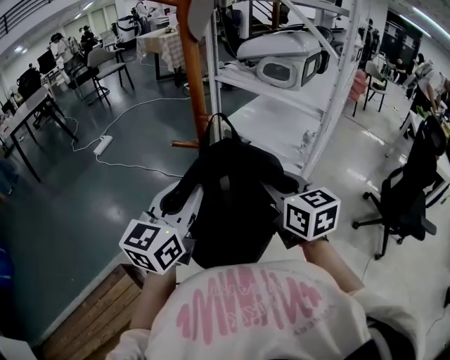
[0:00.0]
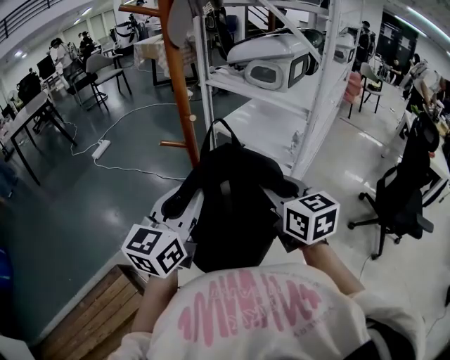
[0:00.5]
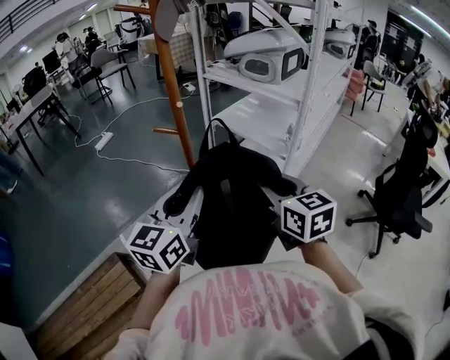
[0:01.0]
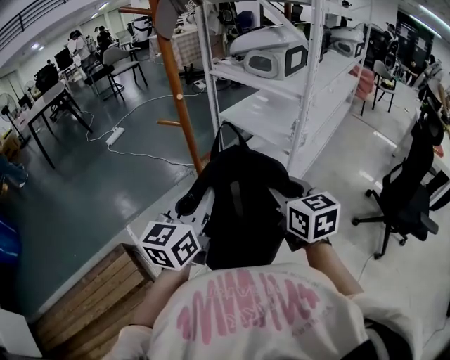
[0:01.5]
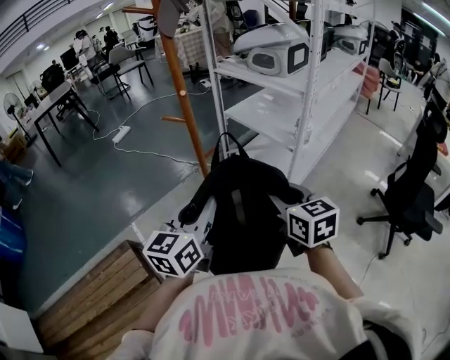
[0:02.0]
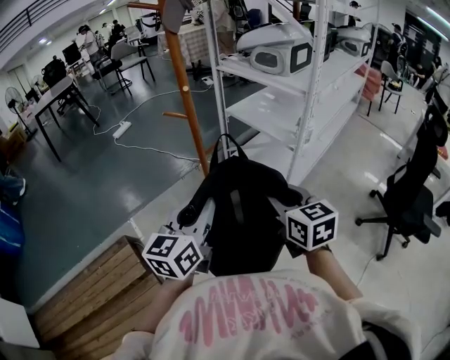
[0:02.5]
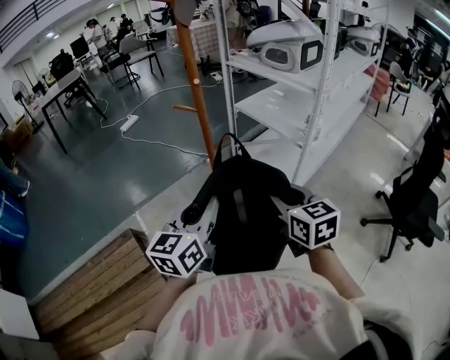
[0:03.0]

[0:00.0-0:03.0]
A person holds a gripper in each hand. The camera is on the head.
0:00.0 to 0:01.5: The grippers both shift to the right and backward by about 15 cm.
0:01.5 to 0:03.0: The left gripper shifts by some 5 cm. Meanwhile the right gripper moves roughly 5 cm.

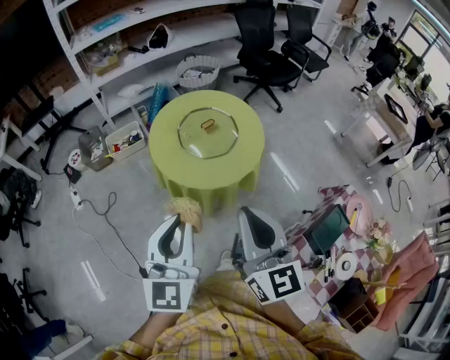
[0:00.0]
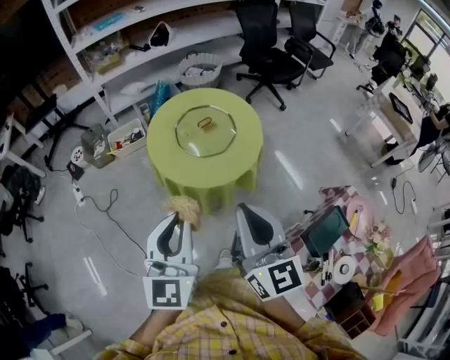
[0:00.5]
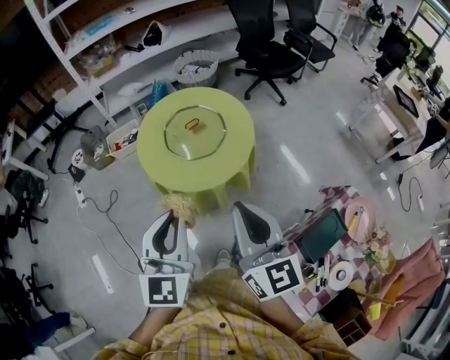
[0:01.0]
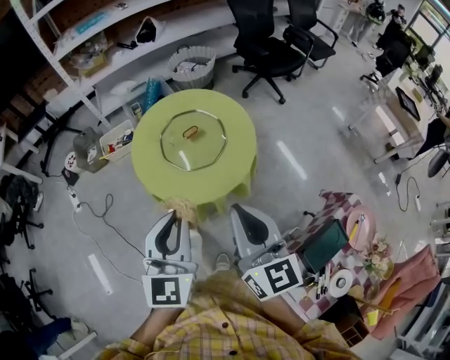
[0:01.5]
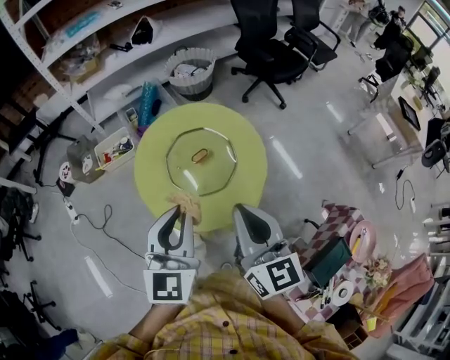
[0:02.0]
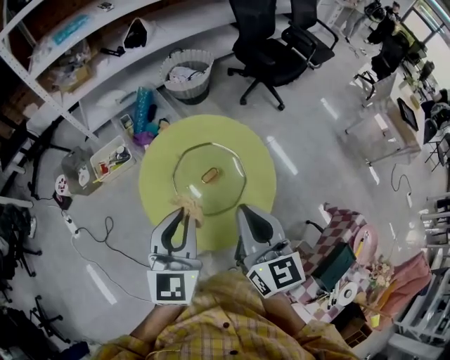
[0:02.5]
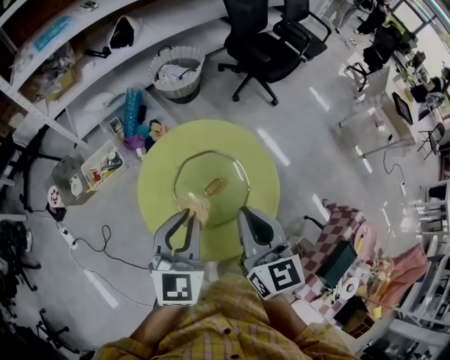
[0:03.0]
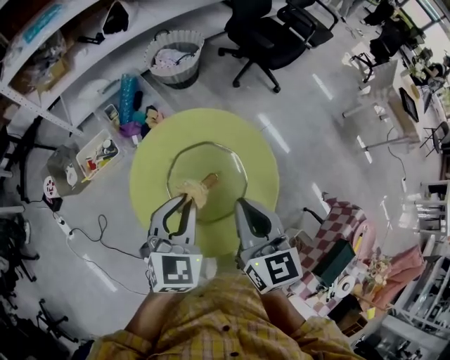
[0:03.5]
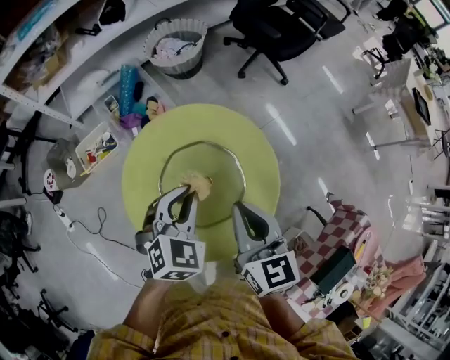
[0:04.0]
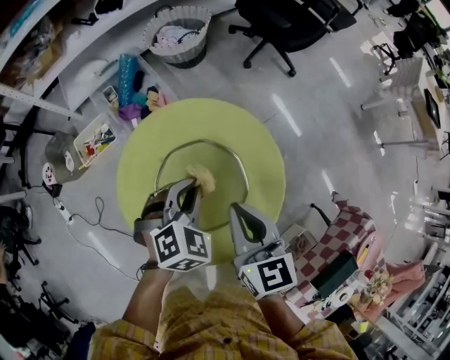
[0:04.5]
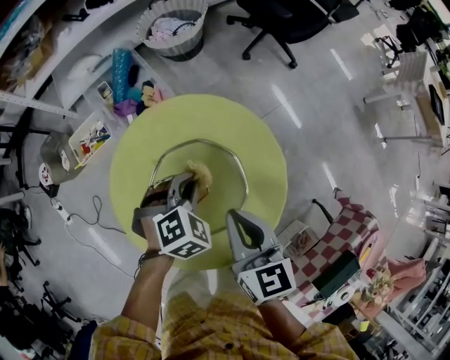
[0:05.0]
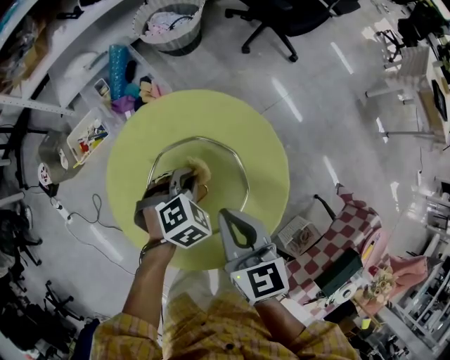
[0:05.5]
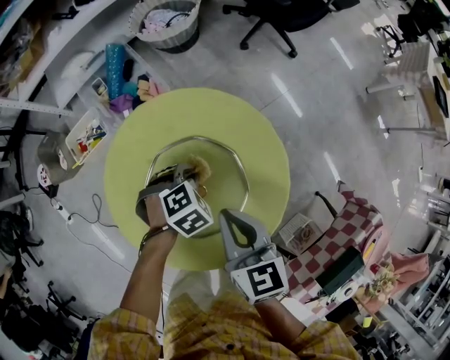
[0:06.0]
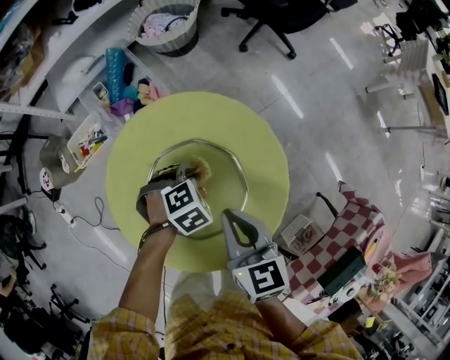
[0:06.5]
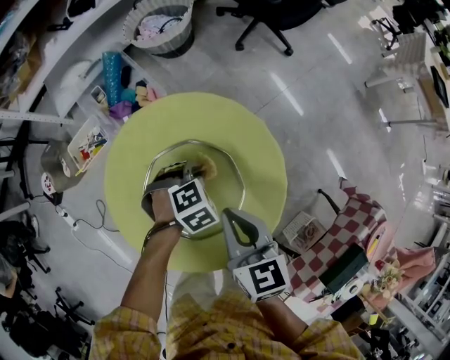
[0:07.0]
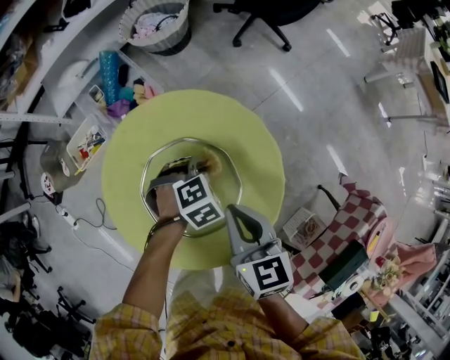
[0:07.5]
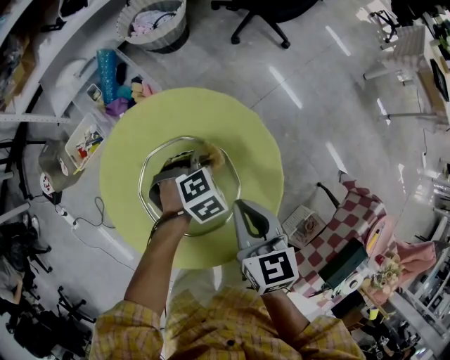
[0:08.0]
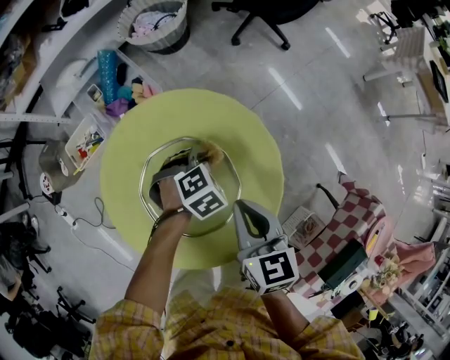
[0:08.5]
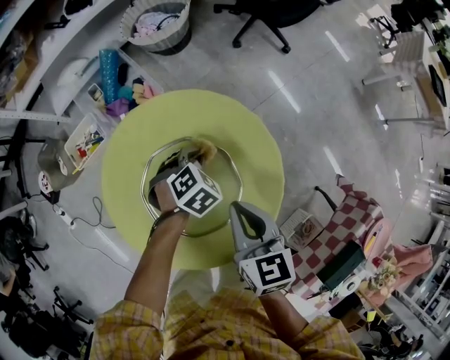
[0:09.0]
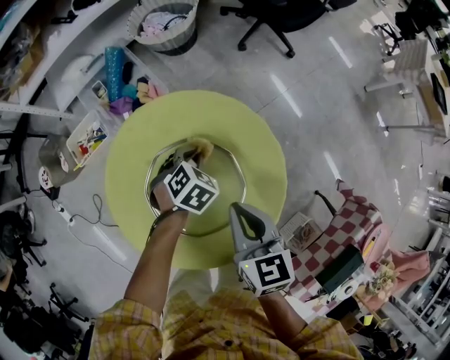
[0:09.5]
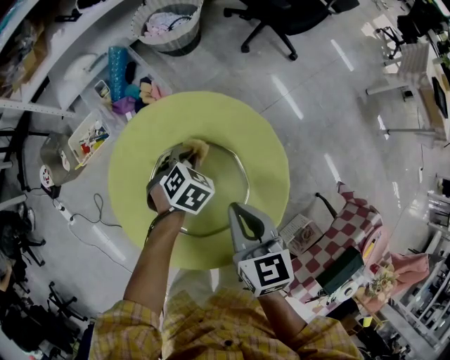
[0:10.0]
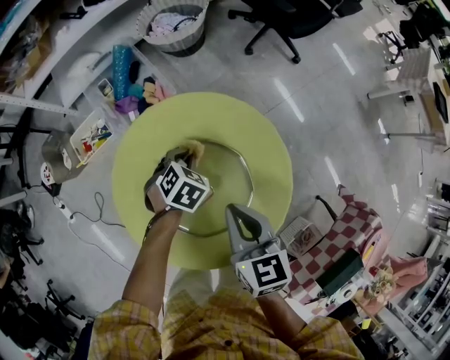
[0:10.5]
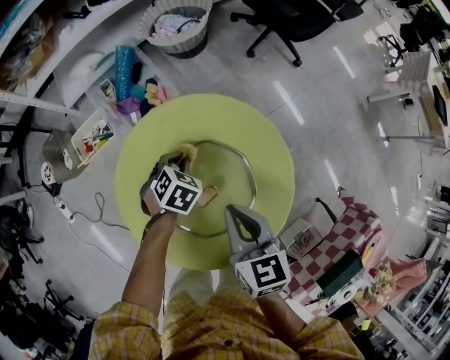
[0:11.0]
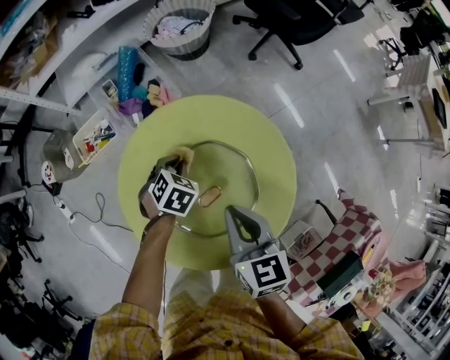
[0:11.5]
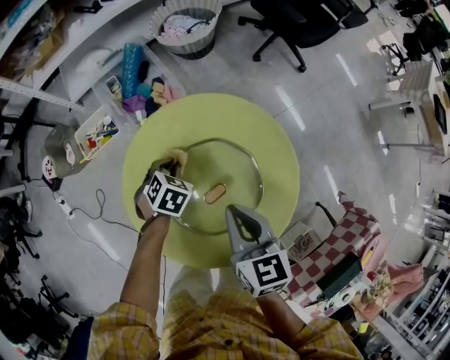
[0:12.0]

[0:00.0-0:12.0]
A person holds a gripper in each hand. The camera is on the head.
0:00.0 to 0:02.0: Both grippers move forward, some 30 cm.
0:02.0 to 0:04.0: Both grippers travel together forward and downward, roughly 30 cm. The left gripper points its fingers approximately 30 degrees further downward.
0:04.0 to 0:06.0: The left gripper moves downward, some 25 cm, and tips its fingers downward by some 30 degrees; the right gripper travels downward by about 15 cm.
0:06.0 to 0:08.0: The left gripper shifts by roughly 5 cm. Meanwhile the right gripper changes place by roughly 5 cm.
0:08.0 to 0:10.0: The left gripper moves to the left, roughly 10 cm, and rotates approximately 30 degrees.
0:10.0 to 0:12.0: The right gripper heads to the left, covering roughly 5 cm. The left gripper moves to the left, some 10 cm.

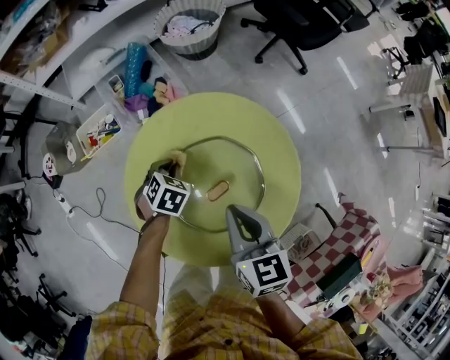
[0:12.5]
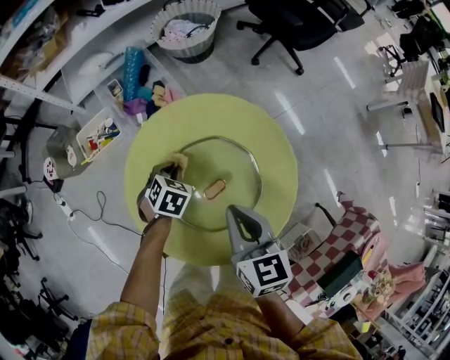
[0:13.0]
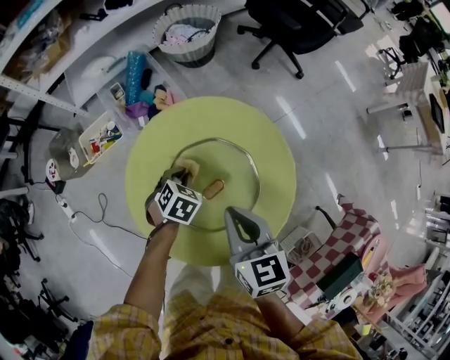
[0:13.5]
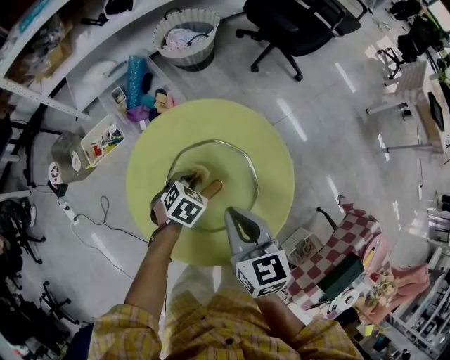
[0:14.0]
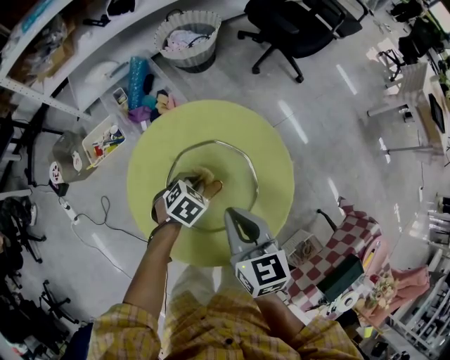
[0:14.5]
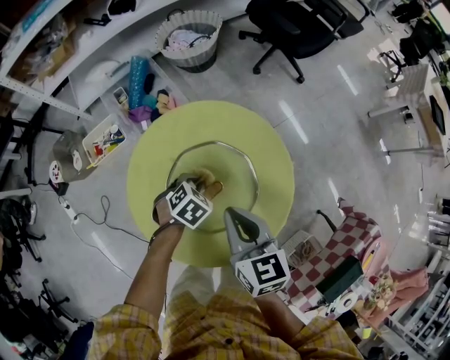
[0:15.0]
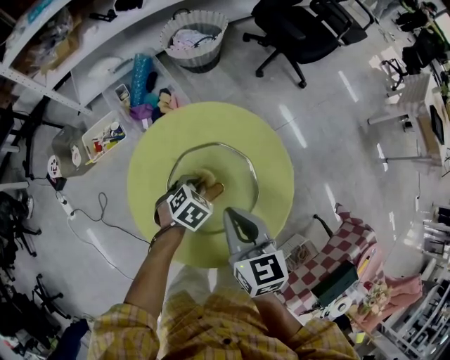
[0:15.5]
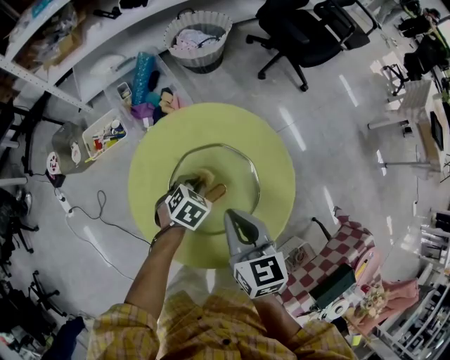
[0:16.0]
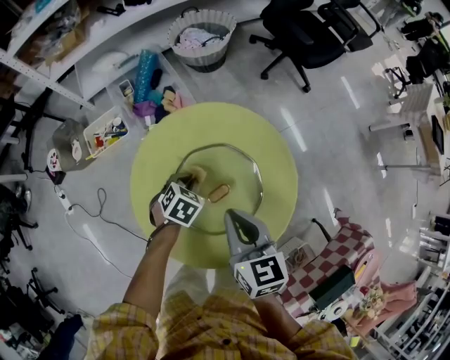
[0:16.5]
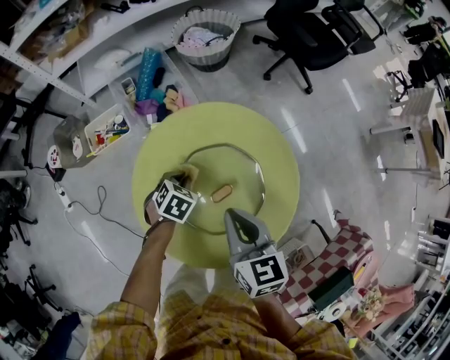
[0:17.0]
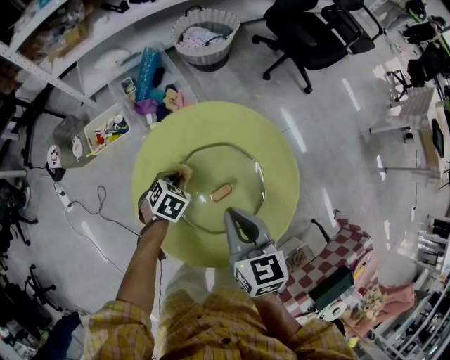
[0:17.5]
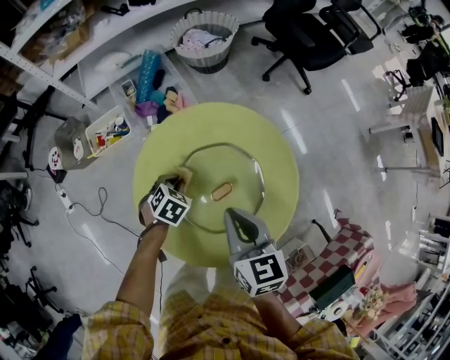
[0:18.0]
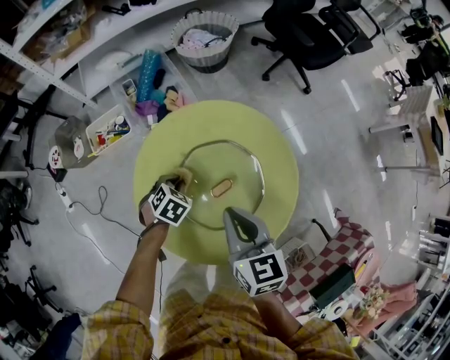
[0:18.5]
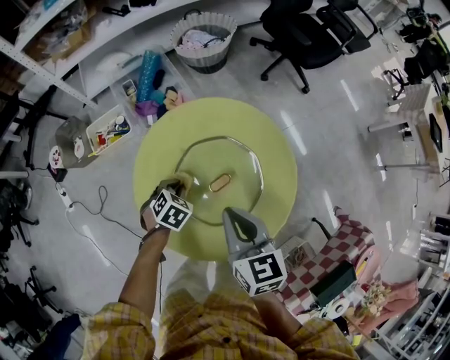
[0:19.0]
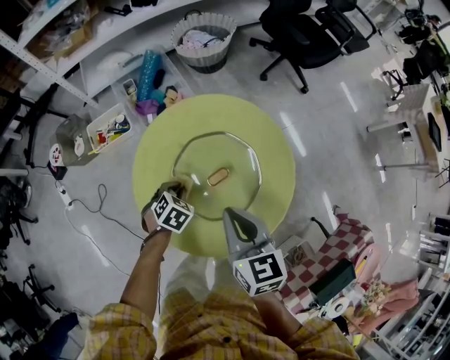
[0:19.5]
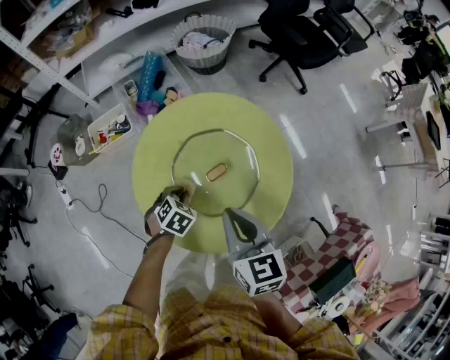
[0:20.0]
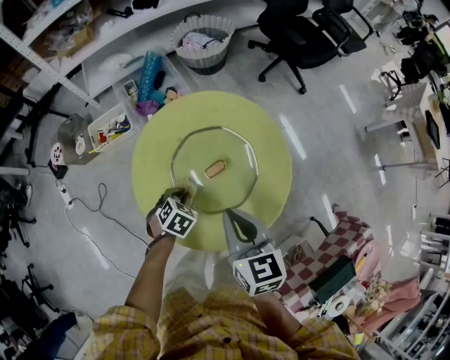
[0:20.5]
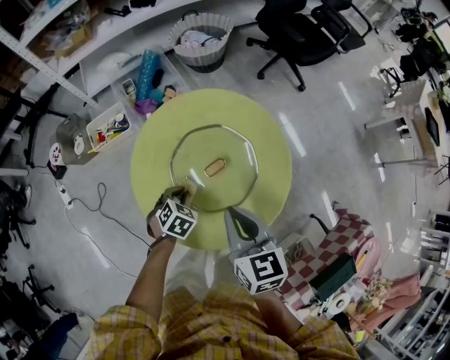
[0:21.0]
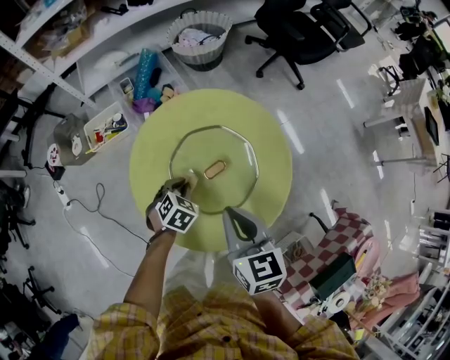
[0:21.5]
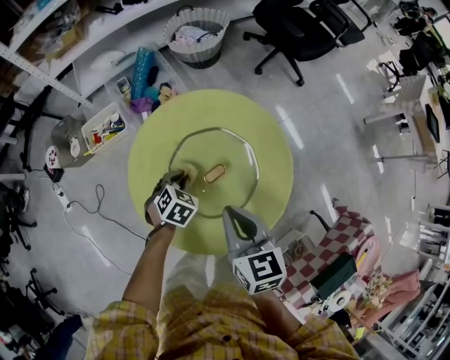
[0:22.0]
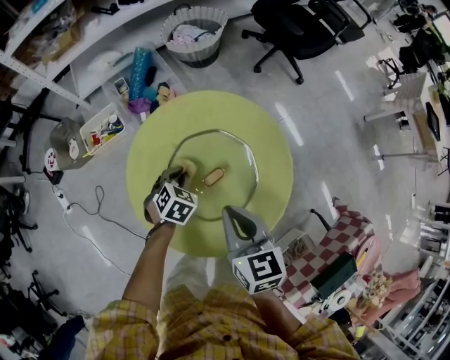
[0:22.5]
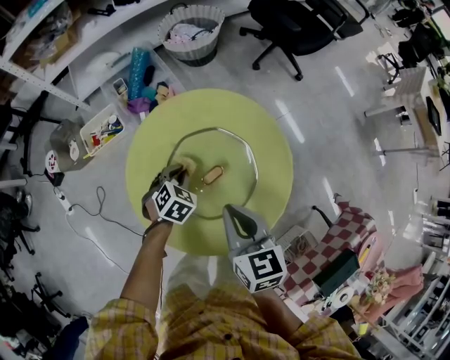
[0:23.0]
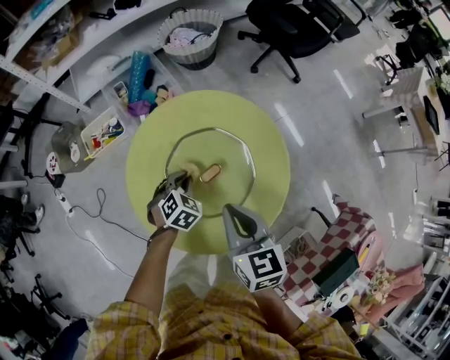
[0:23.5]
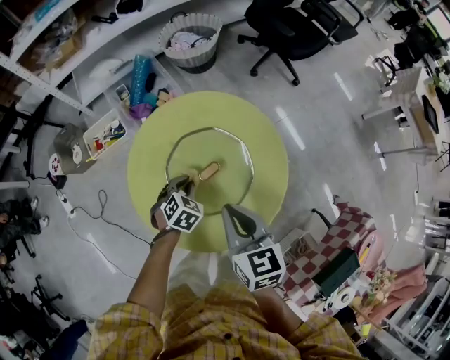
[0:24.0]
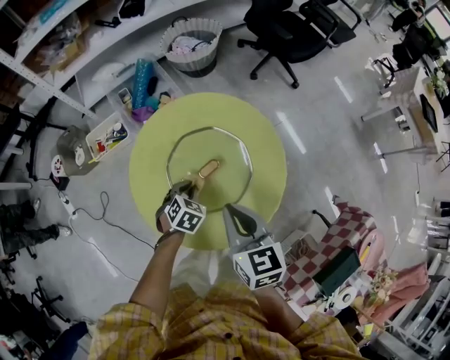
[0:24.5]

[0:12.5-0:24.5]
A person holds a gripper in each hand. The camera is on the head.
0:12.5 to 0:14.5: The left gripper moves to the right, some 10 cm.
0:14.5 to 0:16.5: The left gripper goes approximately 5 cm to the left.
0:16.5 to 0:18.5: The left gripper travels to the left by about 5 cm.
0:18.5 to 0:20.5: Both grippers move backward, about 10 cm.
0:20.5 to 0:22.5: The left gripper is displaced forward by approximately 10 cm. The right gripper ends up roughly 5 cm from where it was.
0:22.5 to 0:24.5: The right gripper shifts by approximately 5 cm. The left gripper moves backward, roughly 10 cm.
